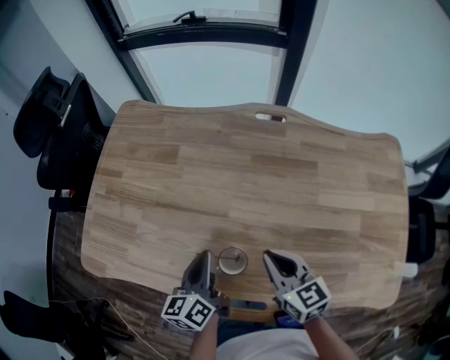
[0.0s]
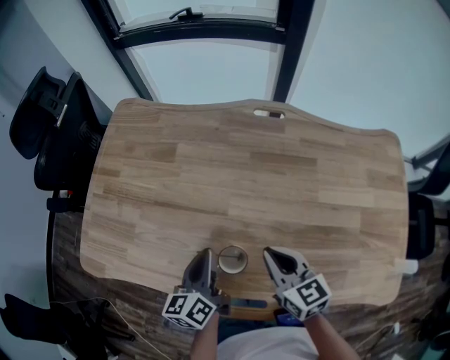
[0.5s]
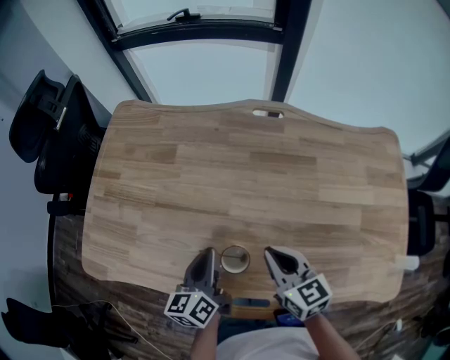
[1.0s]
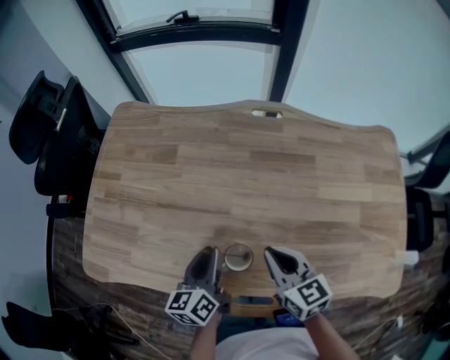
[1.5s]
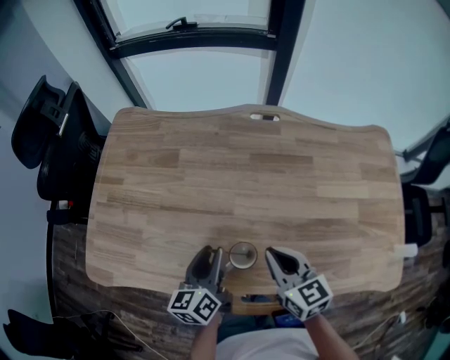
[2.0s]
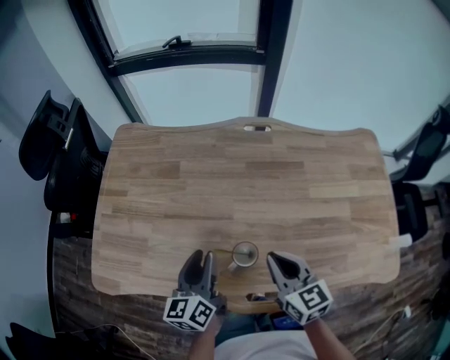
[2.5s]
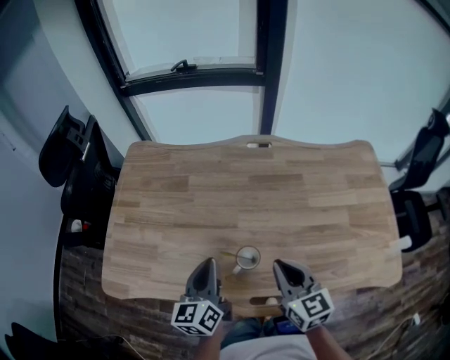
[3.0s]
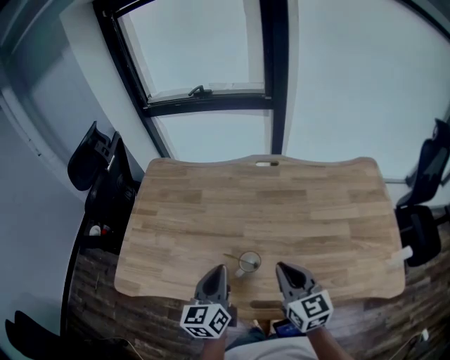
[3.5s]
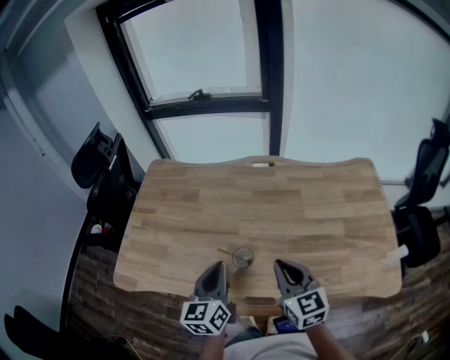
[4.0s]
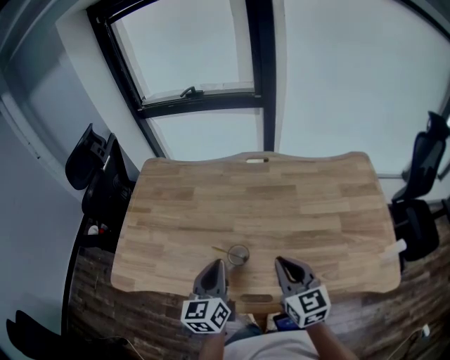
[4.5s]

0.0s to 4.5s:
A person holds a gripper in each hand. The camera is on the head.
0.0s to 2.0s: The left gripper opens its fingers.
2.0s to 4.5s: Both grippers move upward and backward, about 15 cm. The left gripper turns by some 20 degrees, and closes up.

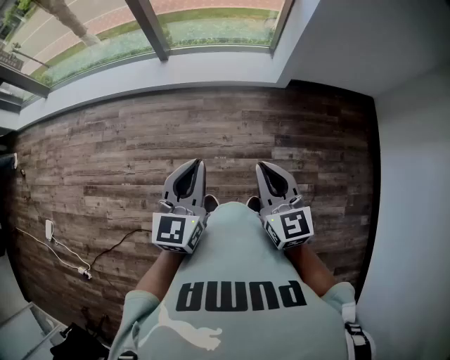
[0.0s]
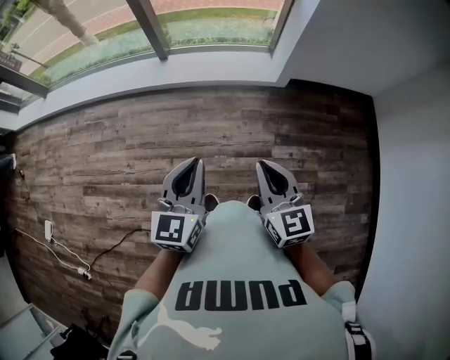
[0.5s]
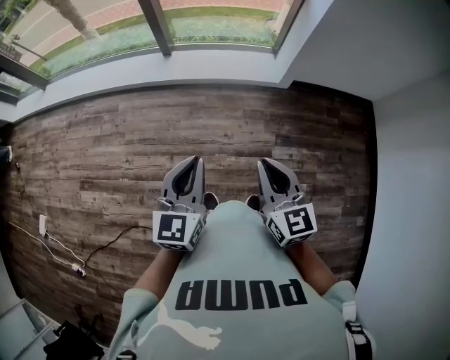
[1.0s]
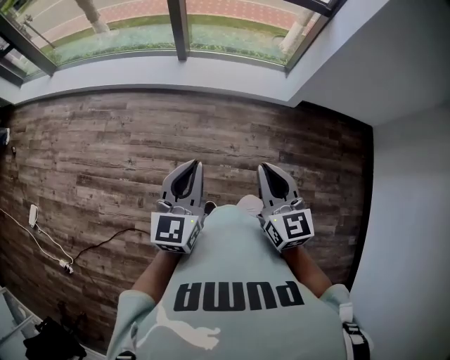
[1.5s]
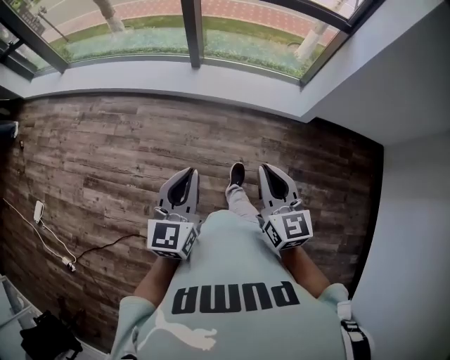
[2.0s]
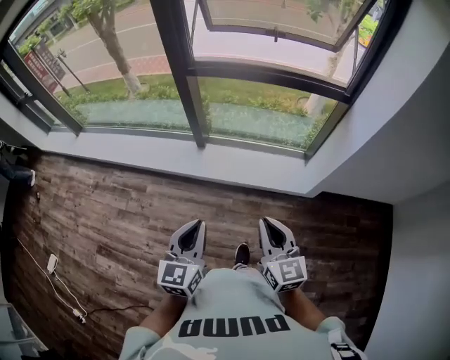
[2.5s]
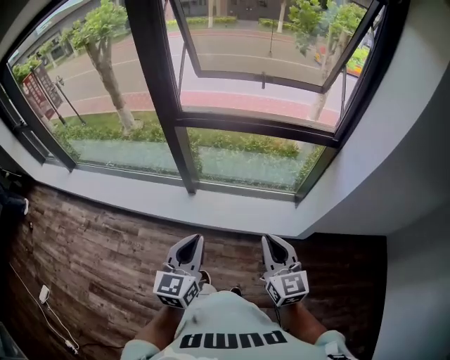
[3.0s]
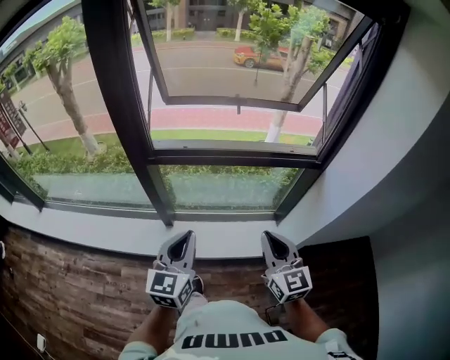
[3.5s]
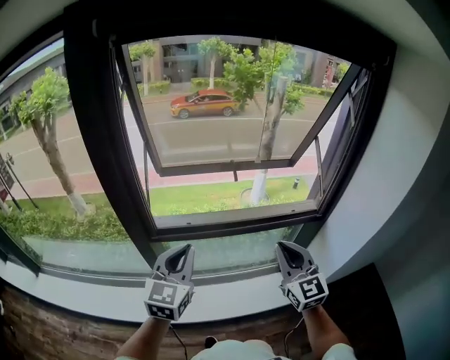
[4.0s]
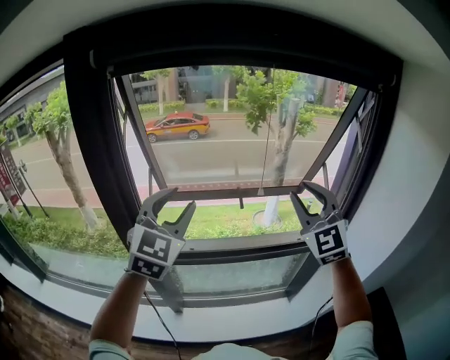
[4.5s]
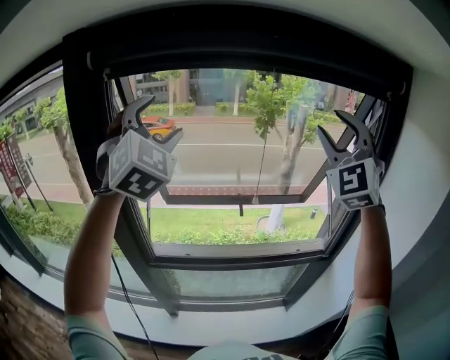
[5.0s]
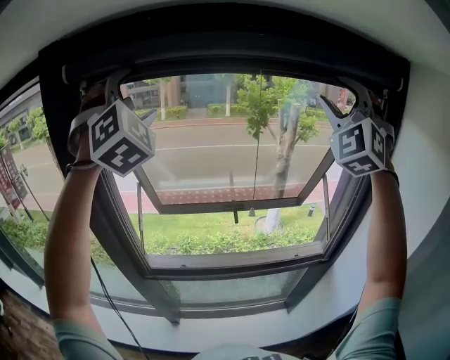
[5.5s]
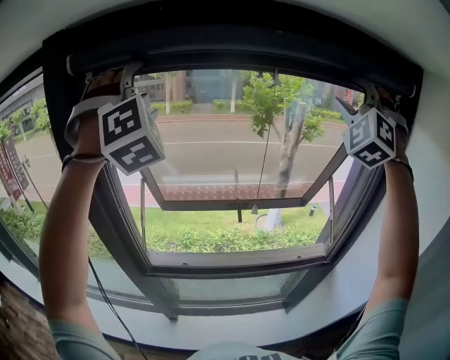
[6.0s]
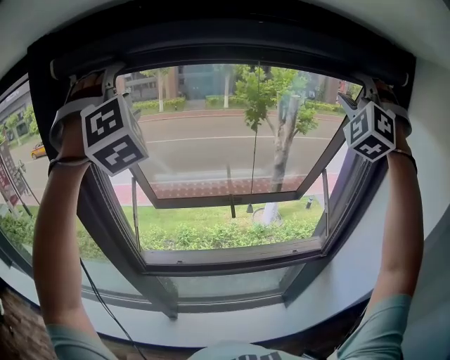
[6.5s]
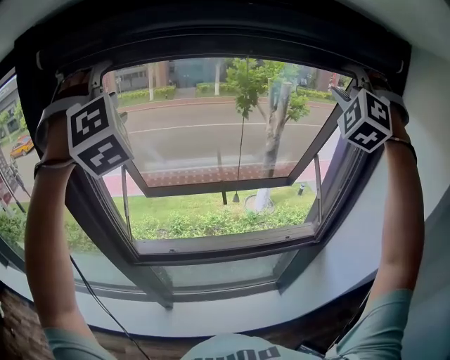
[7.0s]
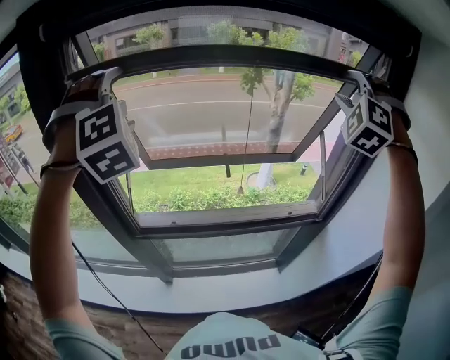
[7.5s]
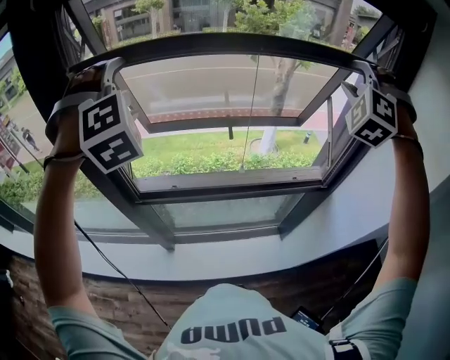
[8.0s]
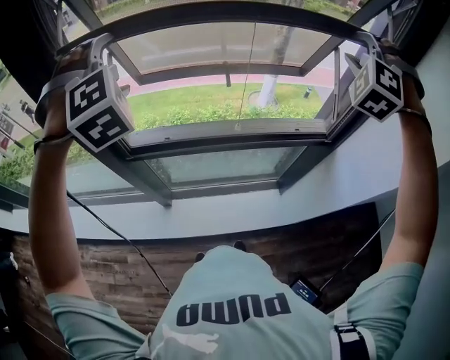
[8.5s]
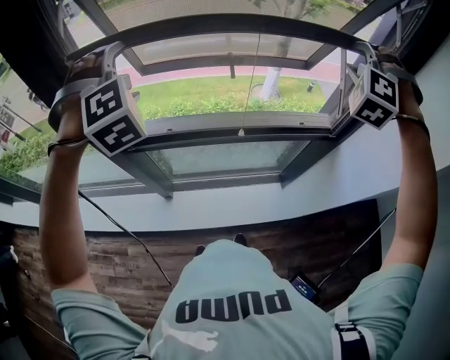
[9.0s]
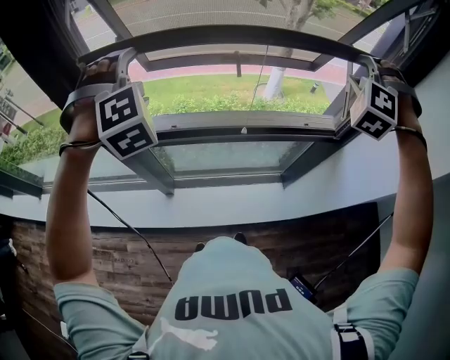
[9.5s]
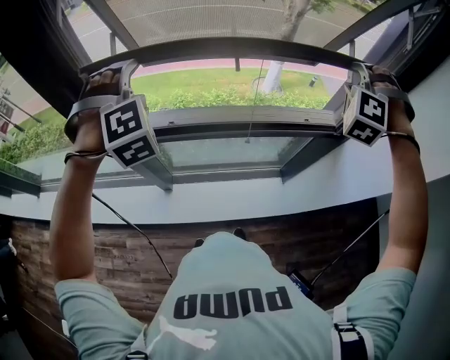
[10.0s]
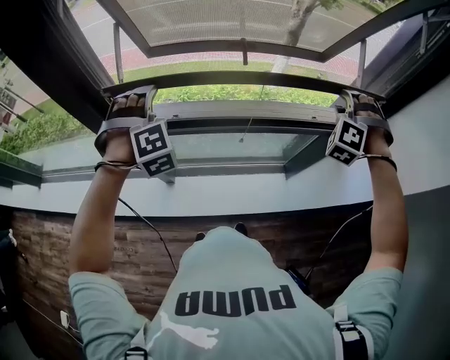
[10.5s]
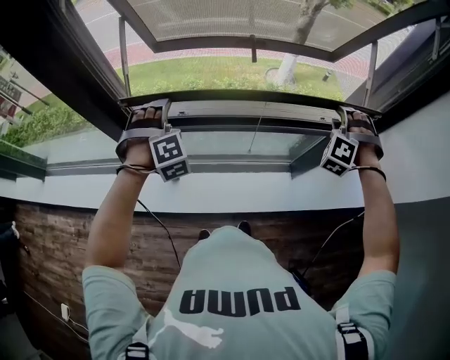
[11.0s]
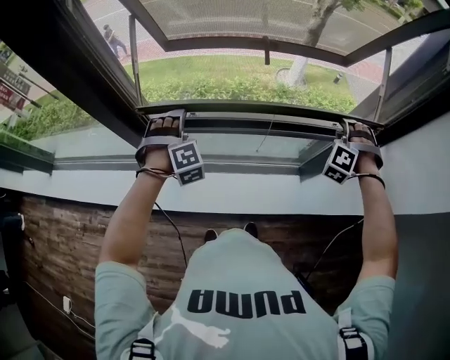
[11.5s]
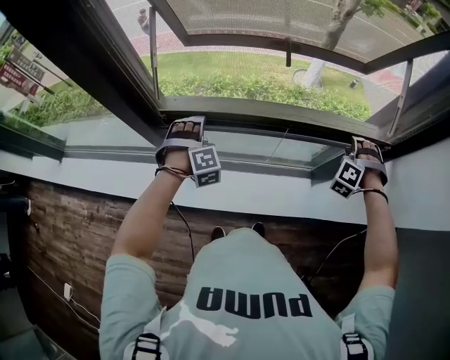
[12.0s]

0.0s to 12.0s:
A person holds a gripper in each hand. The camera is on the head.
0.0s to 2.0s: The grippers both shift to the left and forward by about 20 cm.
2.0s to 4.0s: Both grippers are carried forward, approximately 70 cm. The left gripper rotates roughly 30 degrees. The right gripper turns by approximately 30 degrees.
4.0s to 6.0s: Both grippers move upward and forward, roughly 50 cm. The right gripper twists roughly 70 degrees counterclockwise, seen from behind, and opens its fingers. The left gripper twists some 80 degrees clockwise, seen from behind, and opens up.
6.0s to 8.0s: The grippers both shift downward by some 20 cm. The left gripper swivels some 30 degrees, while the right gripper rotates approximately 30 degrees.
8.0s to 10.0s: Both grippers move downward, roughly 20 cm. The right gripper turns by about 20 degrees.
10.0s to 12.0s: Both grippers travel together downward, roughly 30 cm.

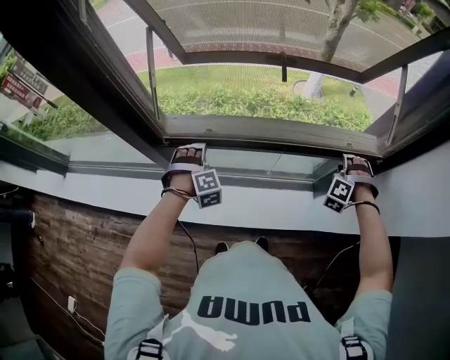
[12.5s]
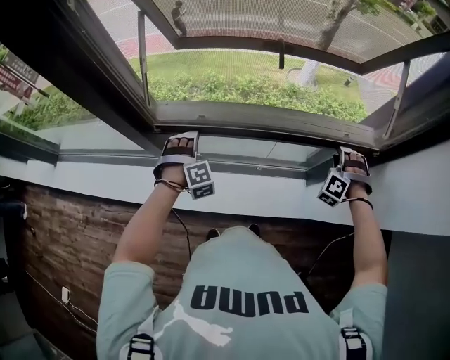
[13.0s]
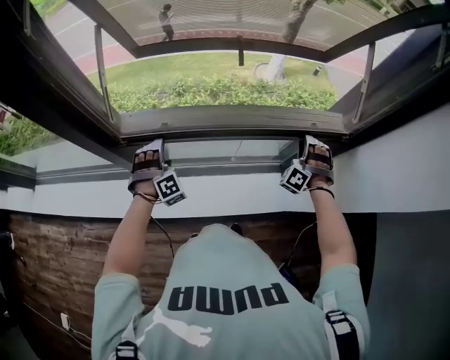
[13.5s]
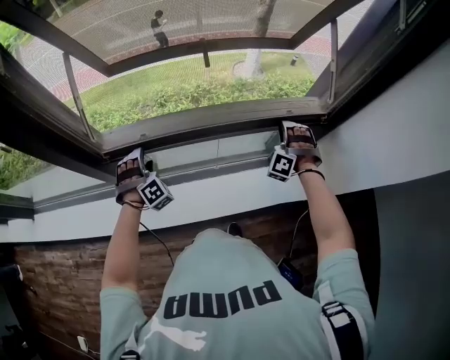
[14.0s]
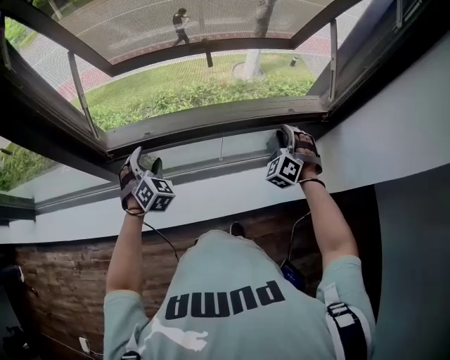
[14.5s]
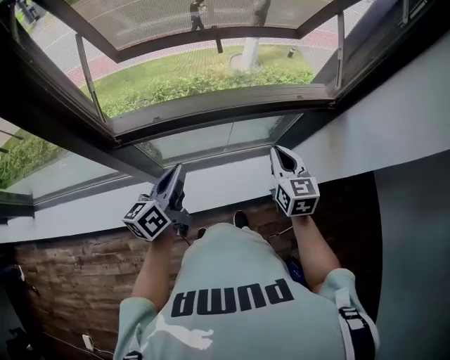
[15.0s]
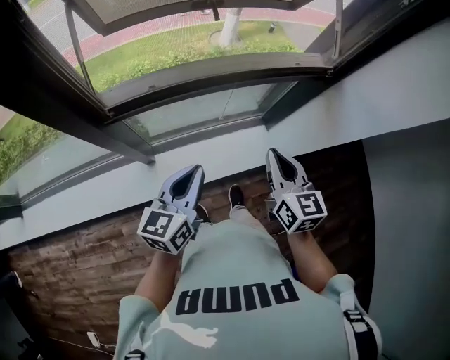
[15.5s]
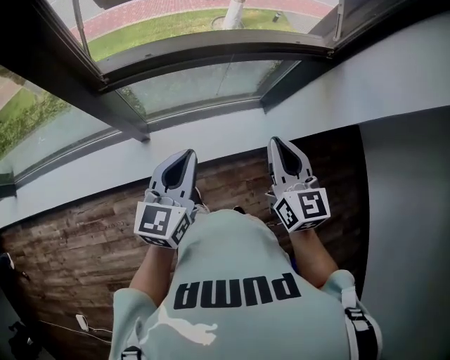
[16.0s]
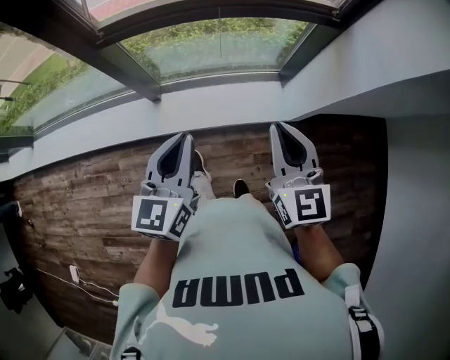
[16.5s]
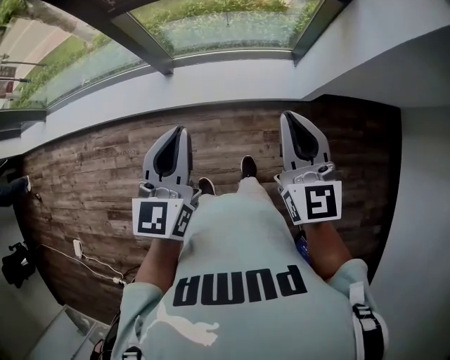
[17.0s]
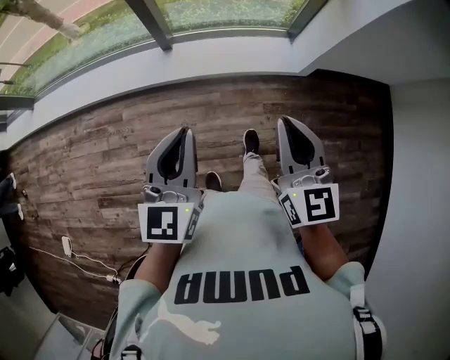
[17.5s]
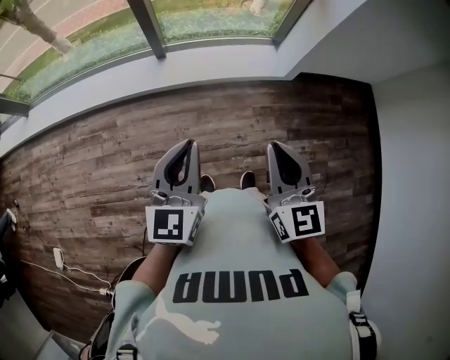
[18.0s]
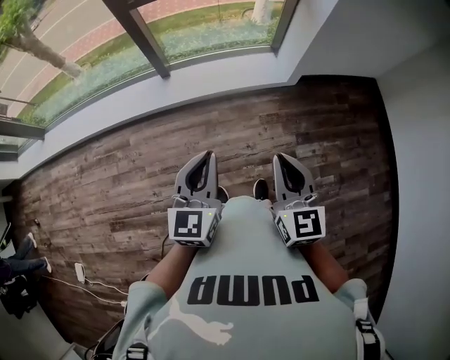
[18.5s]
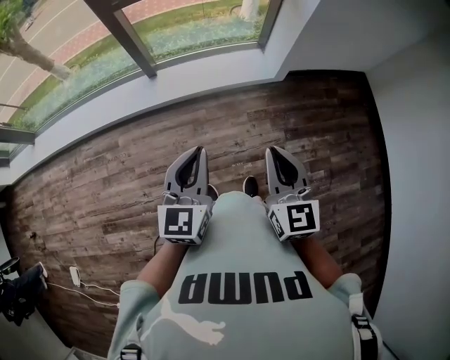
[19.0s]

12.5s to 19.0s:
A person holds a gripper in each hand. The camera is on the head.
12.5s to 14.5s: The right gripper turns by roughly 30 degrees, while the left gripper moves upward, some 5 cm, rotates approximately 40 degrees, and closes up.
14.5s to 17.0s: Both grippers are carried backward, approximately 50 cm. The right gripper twists about 60 degrees clockwise, seen from behind, and closes its fingers. The left gripper twists some 50 degrees counterclockwise, seen from behind, and closes up.
17.0s to 19.0s: Both grippers travel together backward, roughly 35 cm.

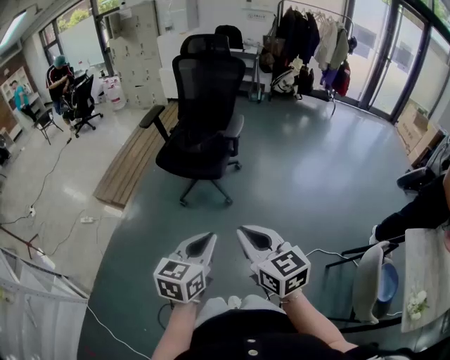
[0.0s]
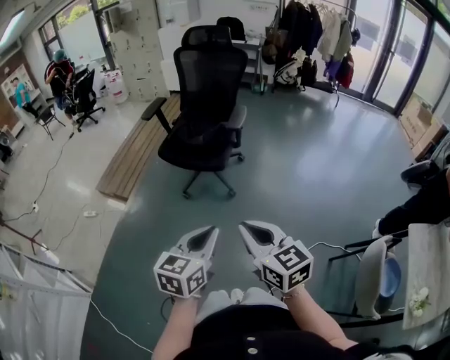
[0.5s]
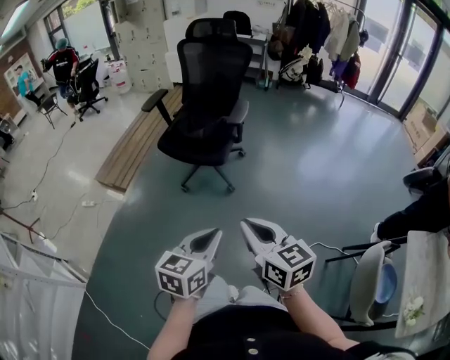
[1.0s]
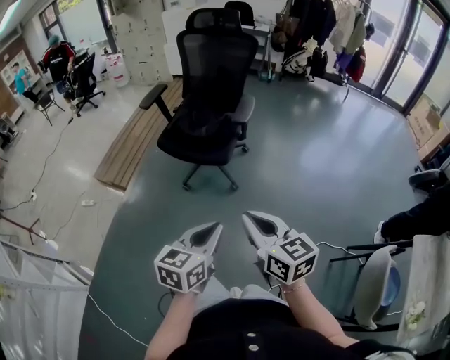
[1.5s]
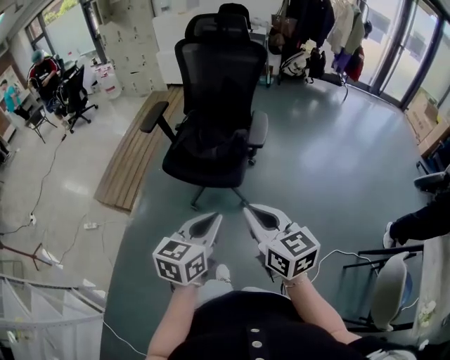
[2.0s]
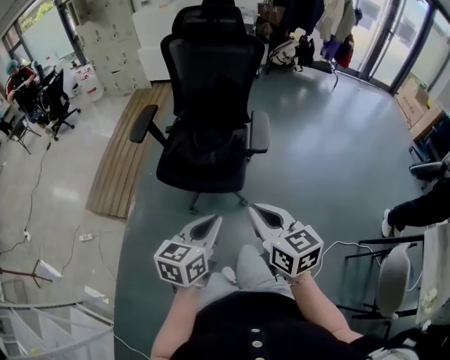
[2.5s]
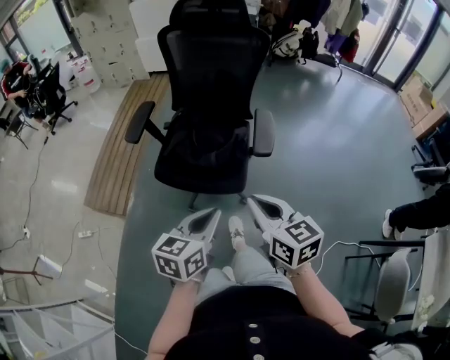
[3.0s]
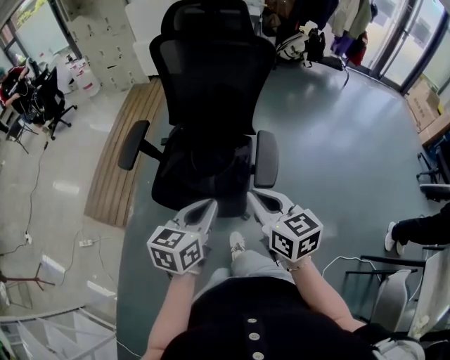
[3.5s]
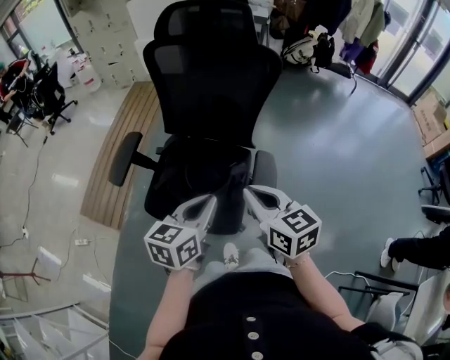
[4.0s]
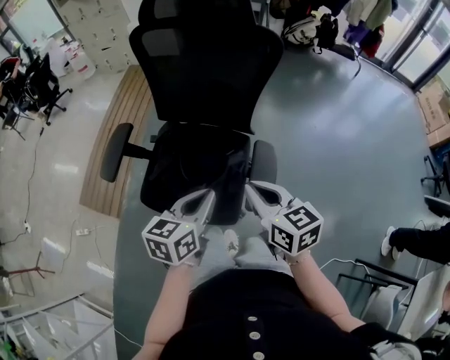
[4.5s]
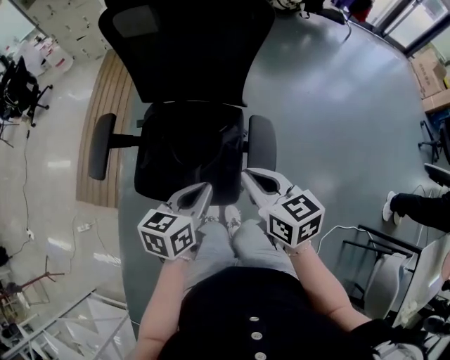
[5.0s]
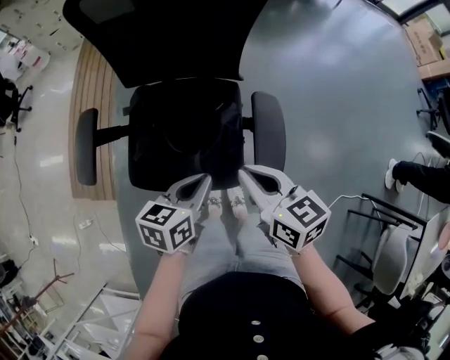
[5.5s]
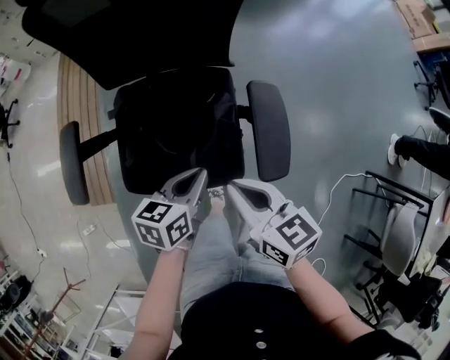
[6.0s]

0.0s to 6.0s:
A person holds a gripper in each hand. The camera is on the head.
0.0s to 2.0s: The two grippers go some 25 cm forward.
2.0s to 4.0s: The two grippers travel together, forward, some 40 cm.
4.0s to 6.0s: The grippers both shift downward by some 15 cm. The left gripper turns by some 30 degrees, while the right gripper turns by approximately 20 degrees.
